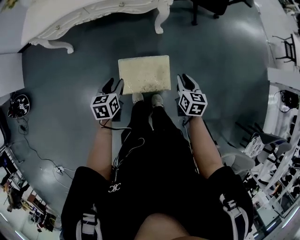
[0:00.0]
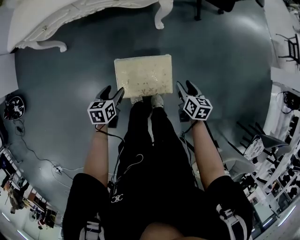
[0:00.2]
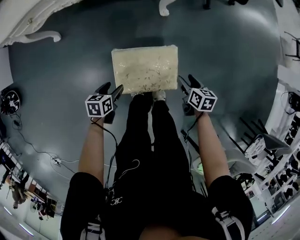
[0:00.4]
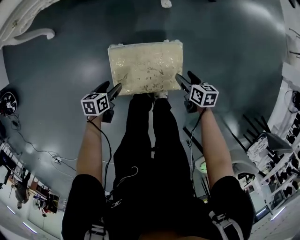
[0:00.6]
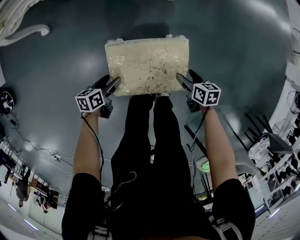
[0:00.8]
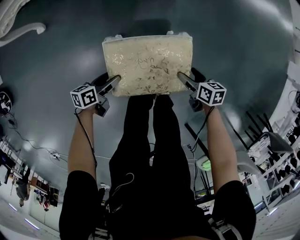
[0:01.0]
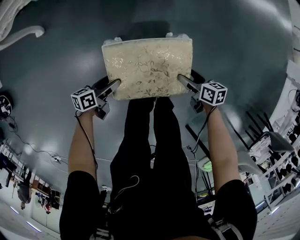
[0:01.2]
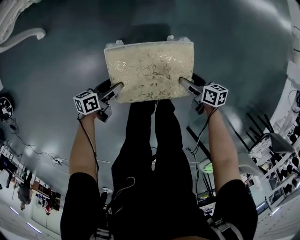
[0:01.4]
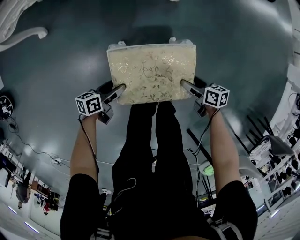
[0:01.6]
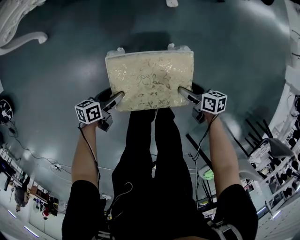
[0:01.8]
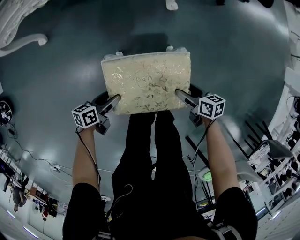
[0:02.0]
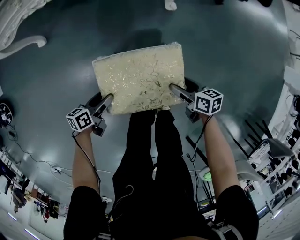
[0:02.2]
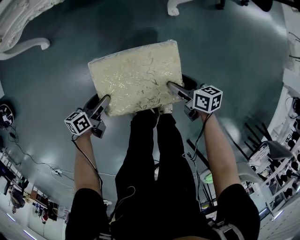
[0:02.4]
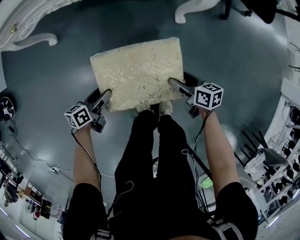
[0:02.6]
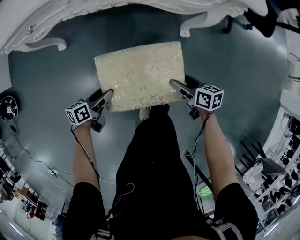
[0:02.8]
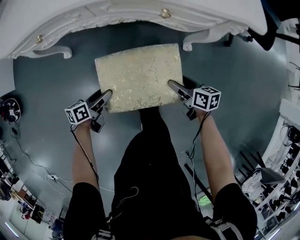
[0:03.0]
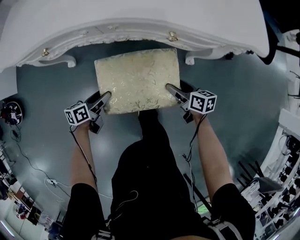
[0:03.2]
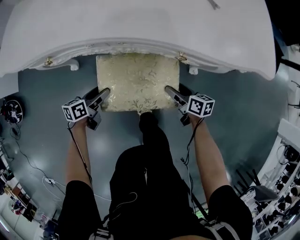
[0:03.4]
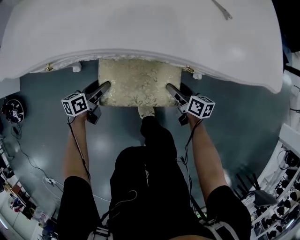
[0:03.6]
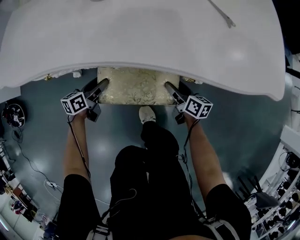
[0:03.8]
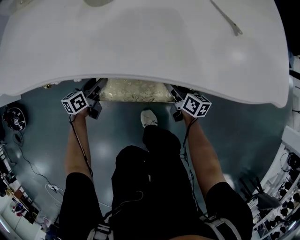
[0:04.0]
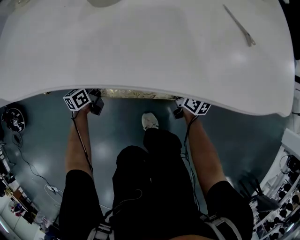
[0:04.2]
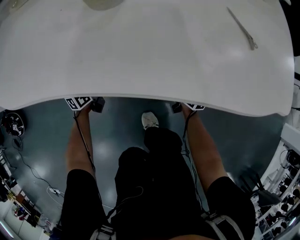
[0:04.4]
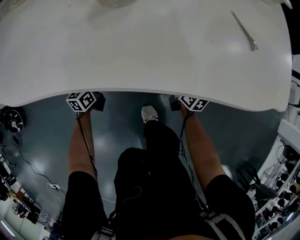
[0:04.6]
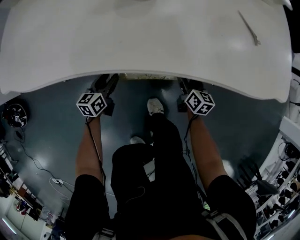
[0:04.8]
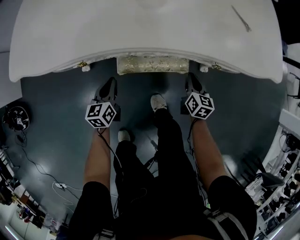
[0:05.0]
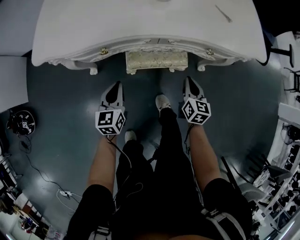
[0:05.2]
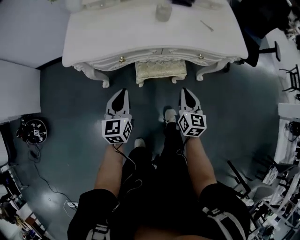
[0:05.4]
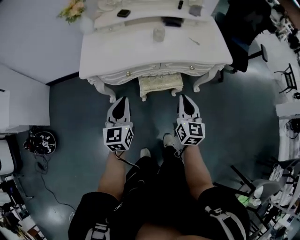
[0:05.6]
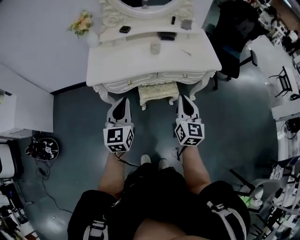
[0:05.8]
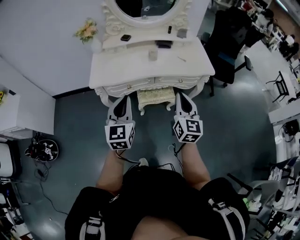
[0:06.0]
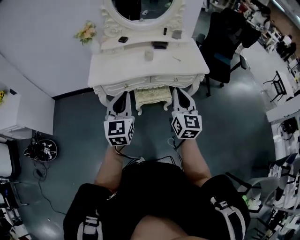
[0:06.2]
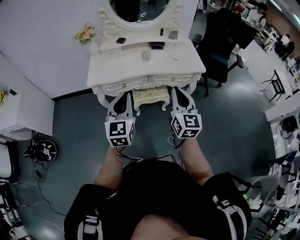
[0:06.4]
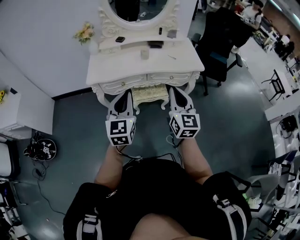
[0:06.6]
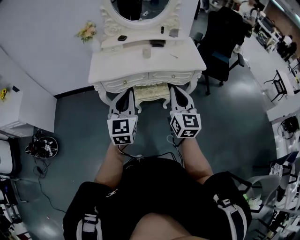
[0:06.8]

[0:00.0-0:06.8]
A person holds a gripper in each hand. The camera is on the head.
0:00.0 to 0:01.4: Both grippers travel together downward, about 40 cm. The right gripper changes its angle by roughly 40 degrees, and opens up, while the left gripper swivels some 40 degrees, and opens.
0:01.4 to 0:02.8: The right gripper shifts by about 25 cm. Meanwhile the left gripper ends up some 20 cm from where it was.
0:02.8 to 0:04.0: Both grippers travel together forward, roughly 35 cm. The left gripper changes its angle by roughly 20 degrees.
0:04.0 to 0:05.4: The right gripper travels upward, backward and to the left by approximately 40 cm, rotates about 40 degrees, and closes; the left gripper is displaced upward and backward by about 40 cm, swivels approximately 40 degrees, and closes.
0:05.4 to 0:06.8: The left gripper goes up and down, about 35 cm each way, reversing 2 times. Meanwhile the right gripper goes up and down, some 40 cm each way, reversing 2 times, and turns by about 20 degrees.

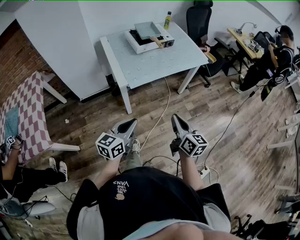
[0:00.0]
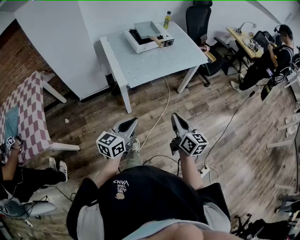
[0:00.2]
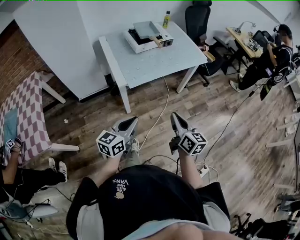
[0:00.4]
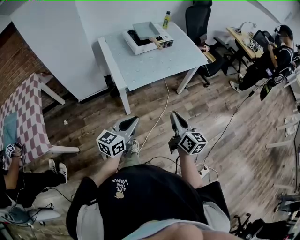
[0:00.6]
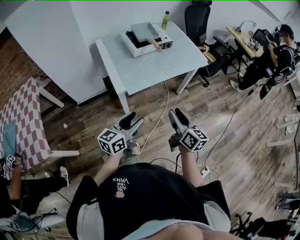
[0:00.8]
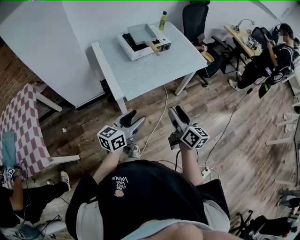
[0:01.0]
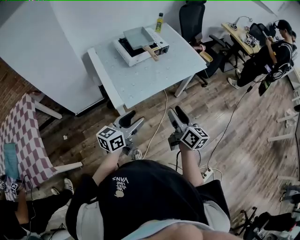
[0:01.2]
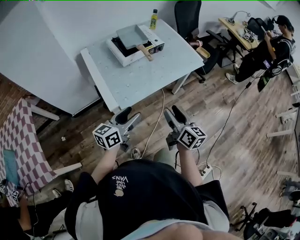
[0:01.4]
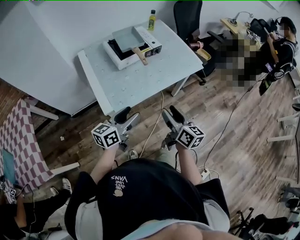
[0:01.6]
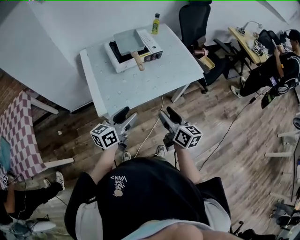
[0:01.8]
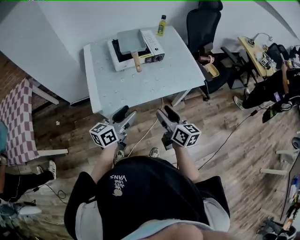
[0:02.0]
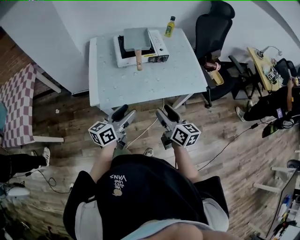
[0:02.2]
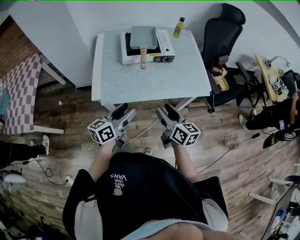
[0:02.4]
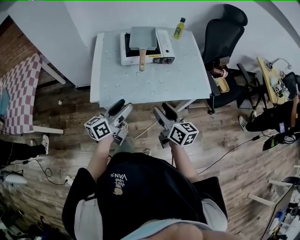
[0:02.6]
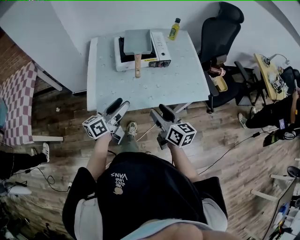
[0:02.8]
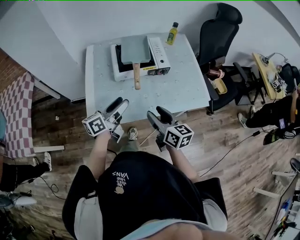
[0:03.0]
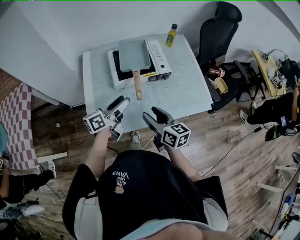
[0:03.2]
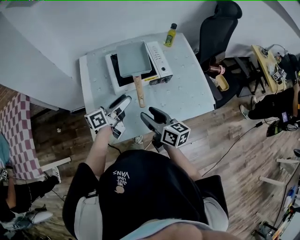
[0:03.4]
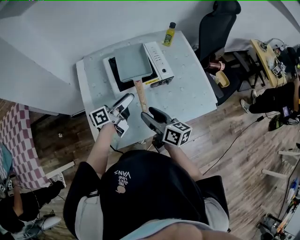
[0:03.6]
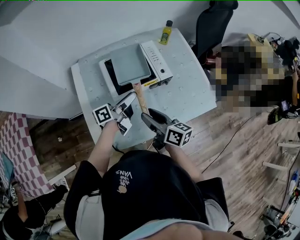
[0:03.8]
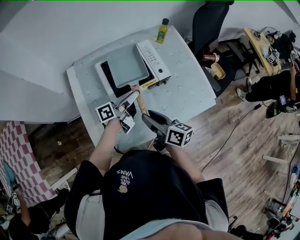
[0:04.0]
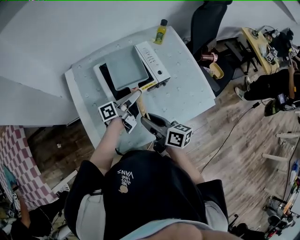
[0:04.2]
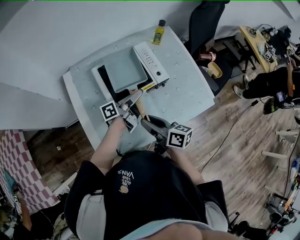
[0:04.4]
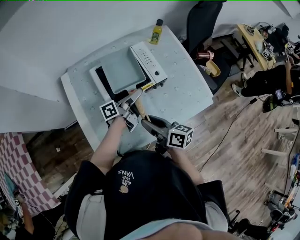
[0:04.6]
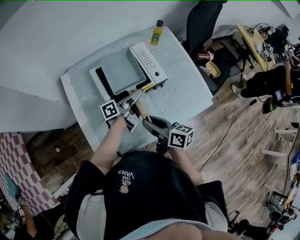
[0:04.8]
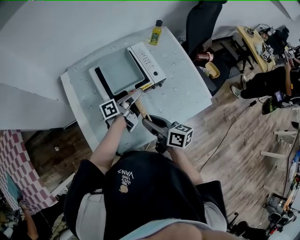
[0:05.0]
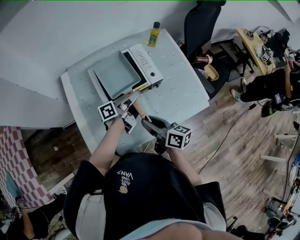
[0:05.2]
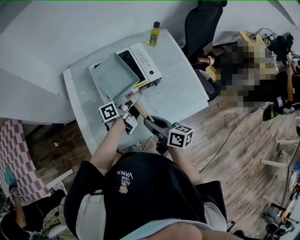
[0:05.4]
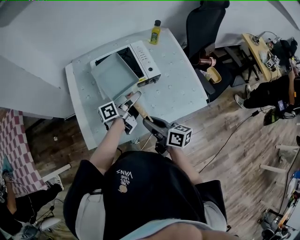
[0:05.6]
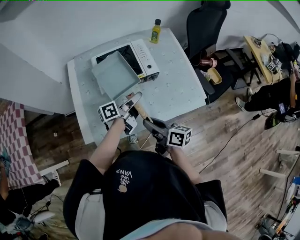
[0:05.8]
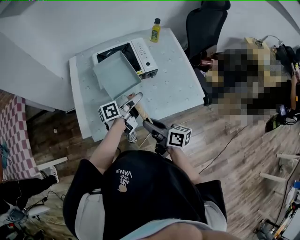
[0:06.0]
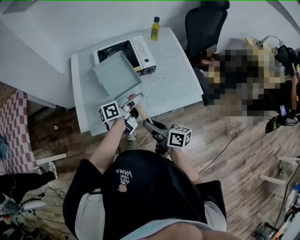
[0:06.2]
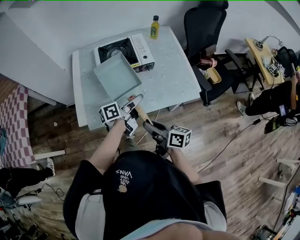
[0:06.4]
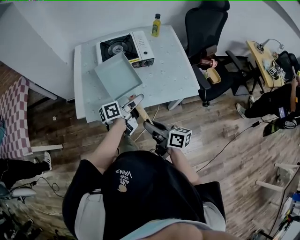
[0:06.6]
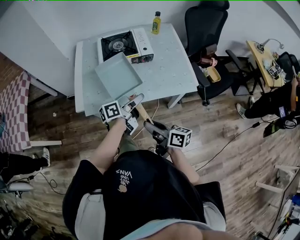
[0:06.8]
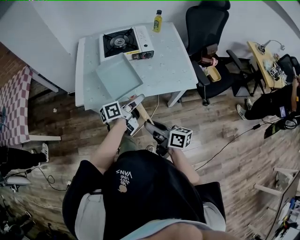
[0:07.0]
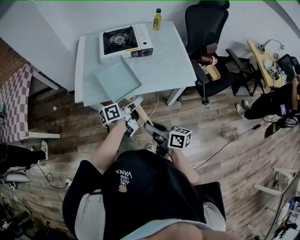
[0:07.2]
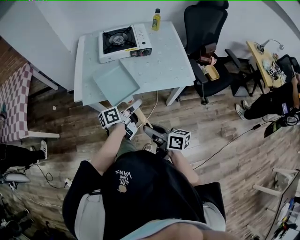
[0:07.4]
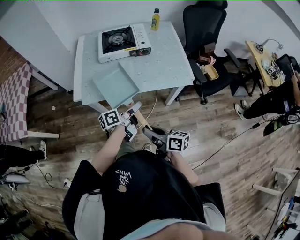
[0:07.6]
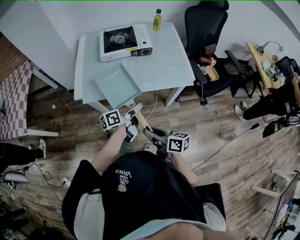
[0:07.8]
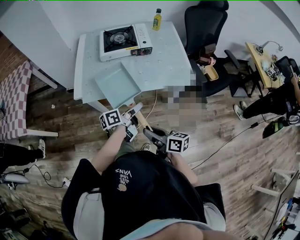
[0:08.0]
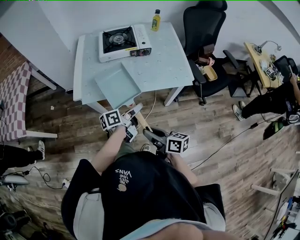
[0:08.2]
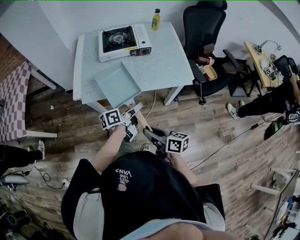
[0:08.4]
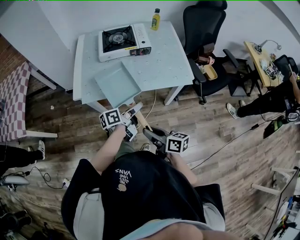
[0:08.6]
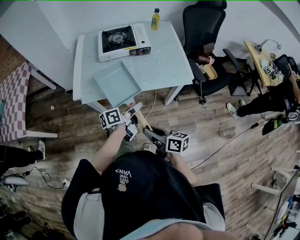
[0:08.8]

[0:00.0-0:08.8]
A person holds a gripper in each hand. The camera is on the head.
0:00.0 to 0:01.4: Both grippers travel together forward, some 20 cm. The right gripper opens, while the left gripper opens its fingers.
0:01.4 to 0:03.0: The left gripper moves some 20 cm, and swivels about 30 degrees, while the right gripper moves approximately 20 cm, and changes its angle by about 30 degrees.
0:03.0 to 0:04.4: The right gripper heads forward and to the left, covering some 15 cm, and swivels approximately 20 degrees, while the left gripper goes some 20 cm forward, and swivels some 40 degrees.
0:04.4 to 0:05.8: The left gripper shifts some 10 cm backward, and closes up; the right gripper is displaced to the right and backward by approximately 10 cm.
0:05.8 to 0:07.4: The two grippers go roughly 25 cm backward.
0:07.4 to 0:08.8: There are only small adjustments of the grippers.

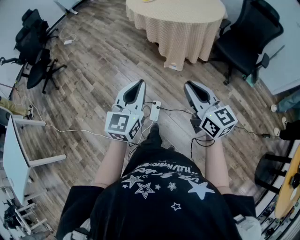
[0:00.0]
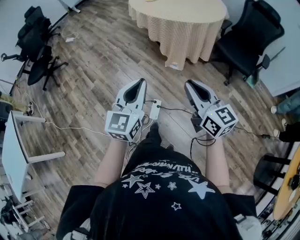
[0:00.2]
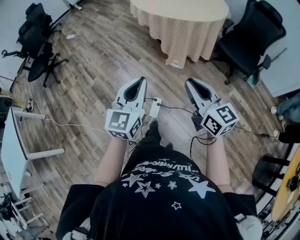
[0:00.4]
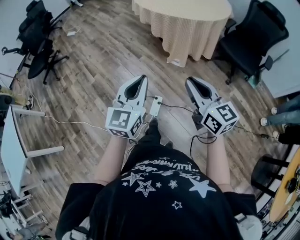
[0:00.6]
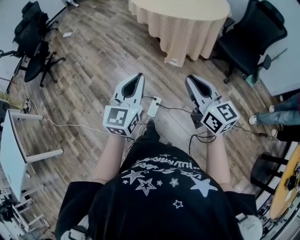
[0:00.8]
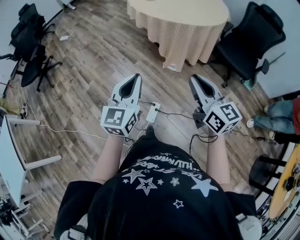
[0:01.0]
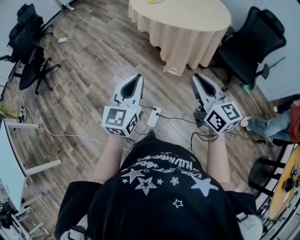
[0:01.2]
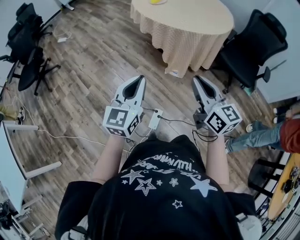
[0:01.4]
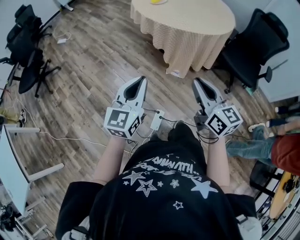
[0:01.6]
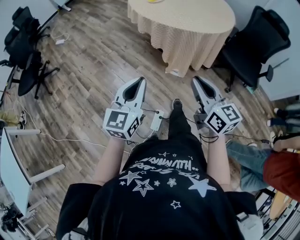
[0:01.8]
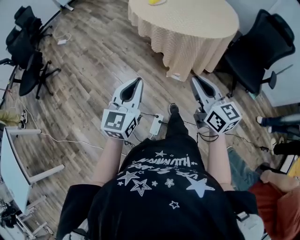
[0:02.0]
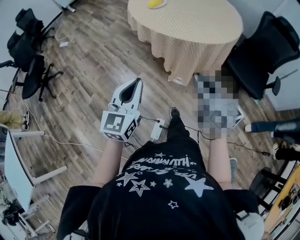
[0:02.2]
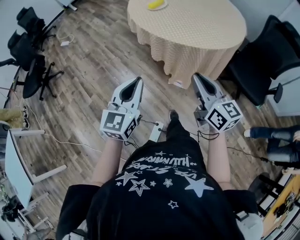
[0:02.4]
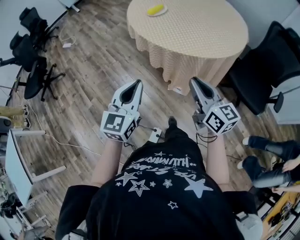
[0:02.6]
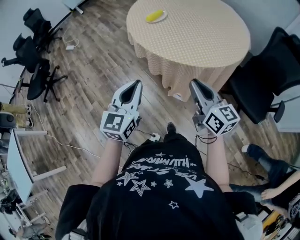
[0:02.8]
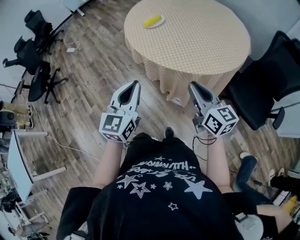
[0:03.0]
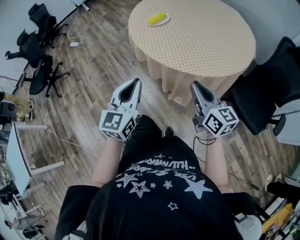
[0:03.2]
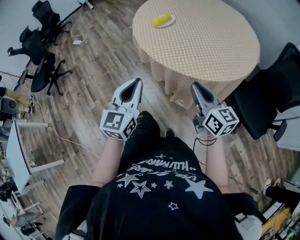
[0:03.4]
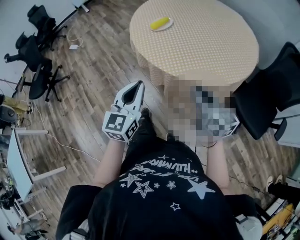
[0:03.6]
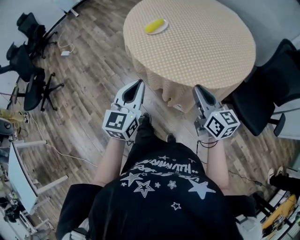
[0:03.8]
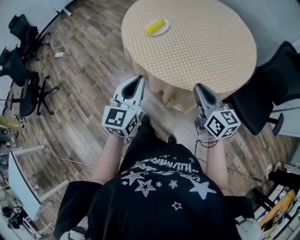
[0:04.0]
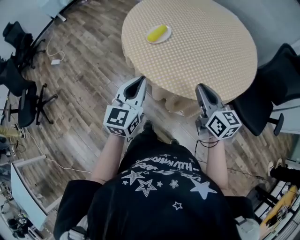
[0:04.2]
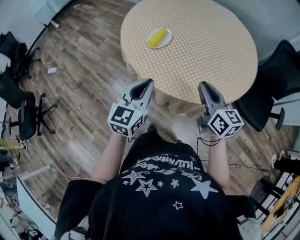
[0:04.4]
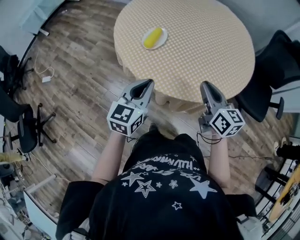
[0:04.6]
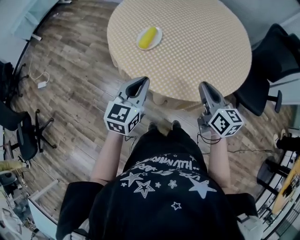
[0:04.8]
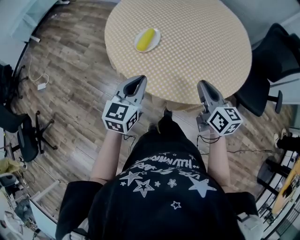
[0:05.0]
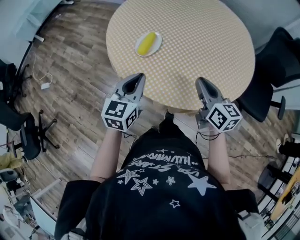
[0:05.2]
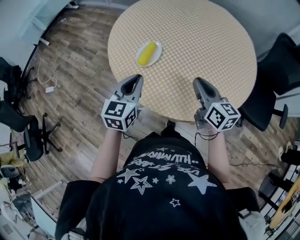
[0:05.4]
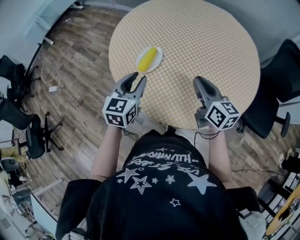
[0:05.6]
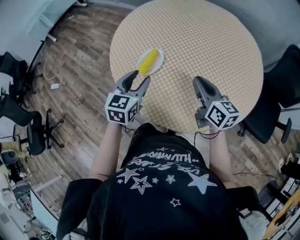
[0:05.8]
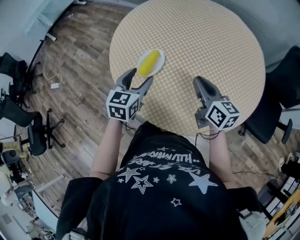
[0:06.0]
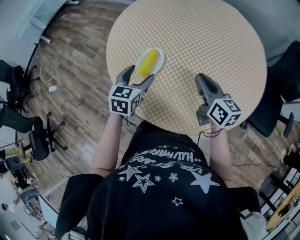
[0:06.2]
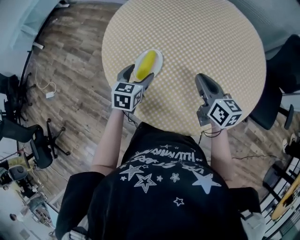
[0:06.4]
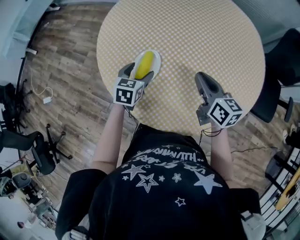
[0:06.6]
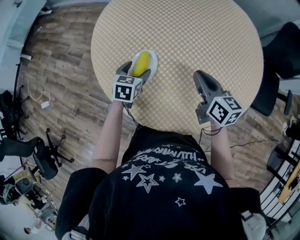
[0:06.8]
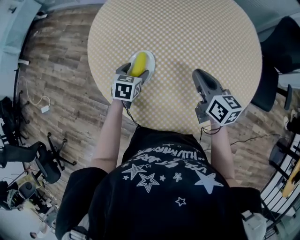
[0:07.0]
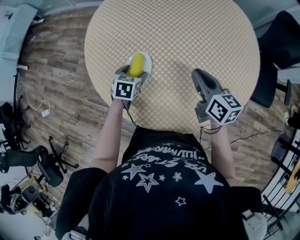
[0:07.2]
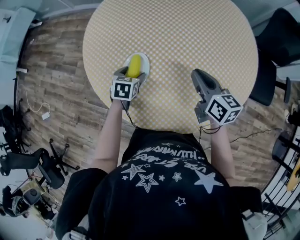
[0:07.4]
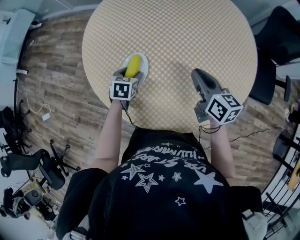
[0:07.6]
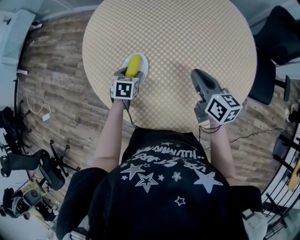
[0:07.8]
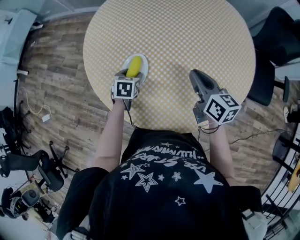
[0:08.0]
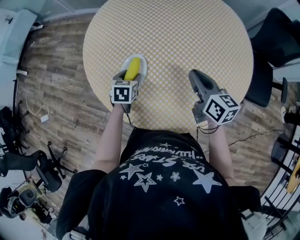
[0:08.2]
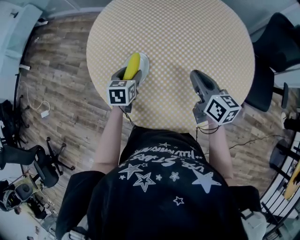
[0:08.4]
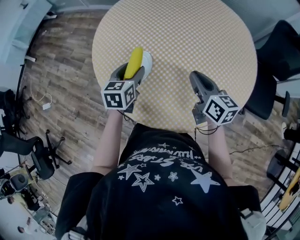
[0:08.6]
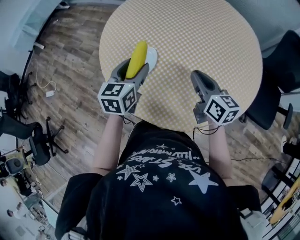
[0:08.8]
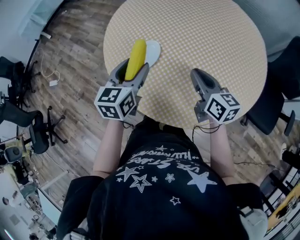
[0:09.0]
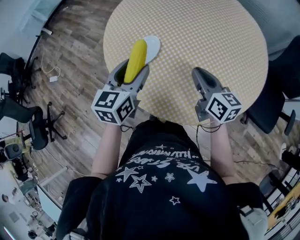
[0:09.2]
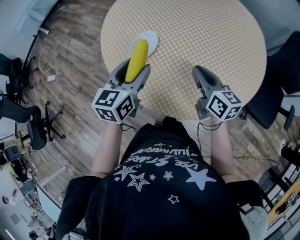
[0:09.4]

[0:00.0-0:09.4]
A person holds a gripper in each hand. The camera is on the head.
0:00.0 to 0:01.6: The right gripper is displaced forward by roughly 15 cm. The left gripper goes some 15 cm forward and to the left.
0:01.6 to 0:03.2: The two grippers go about 40 cm forward and to the right.
0:03.2 to 0:04.8: The left gripper shifts by about 30 cm, and changes its angle by some 30 degrees; the right gripper moves roughly 25 cm, and turns by roughly 30 degrees.
0:04.8 to 0:06.2: Both grippers move forward, about 20 cm. The left gripper opens.
0:06.2 to 0:07.8: The left gripper shifts some 15 cm downward and forward, and turns by some 20 degrees.
0:07.8 to 0:09.4: The left gripper shifts approximately 25 cm upward and backward, and tilts its fingers some 30 degrees upward. Meanwhile the right gripper shifts approximately 5 cm backward.
